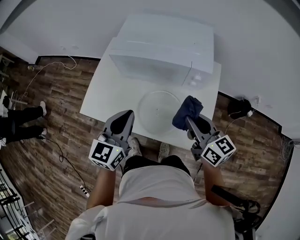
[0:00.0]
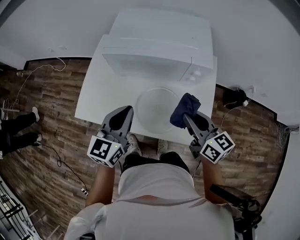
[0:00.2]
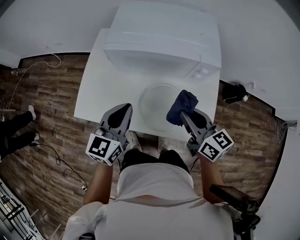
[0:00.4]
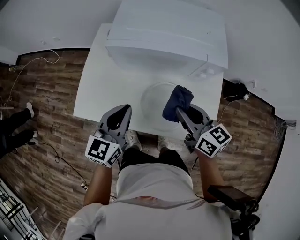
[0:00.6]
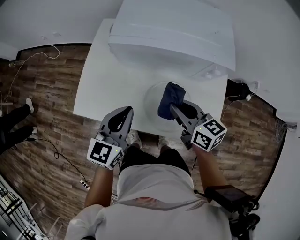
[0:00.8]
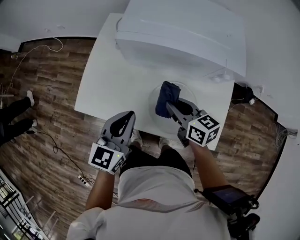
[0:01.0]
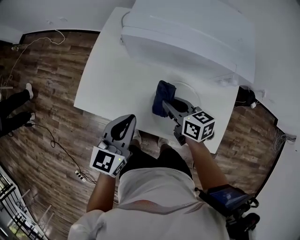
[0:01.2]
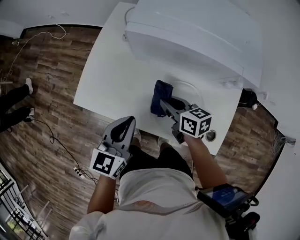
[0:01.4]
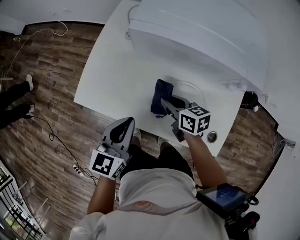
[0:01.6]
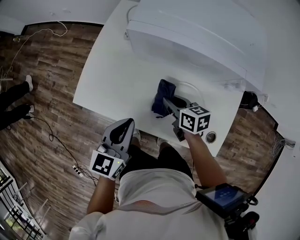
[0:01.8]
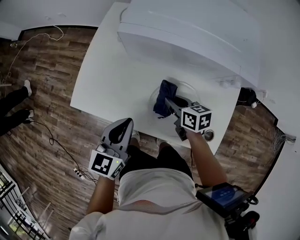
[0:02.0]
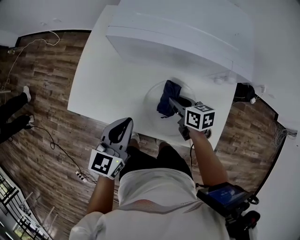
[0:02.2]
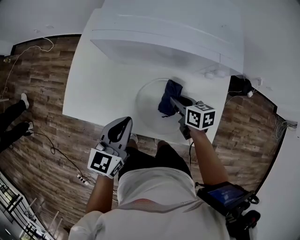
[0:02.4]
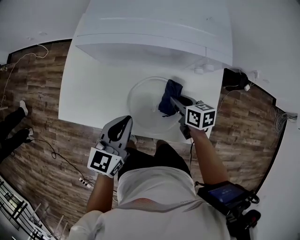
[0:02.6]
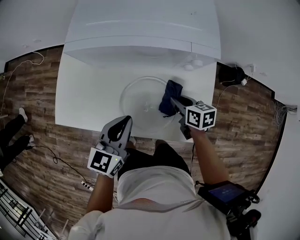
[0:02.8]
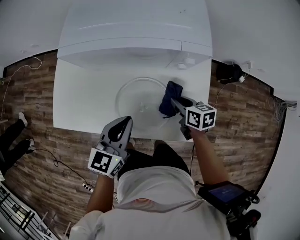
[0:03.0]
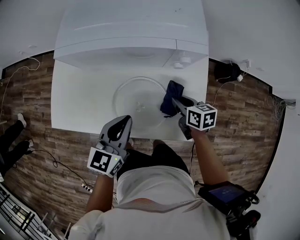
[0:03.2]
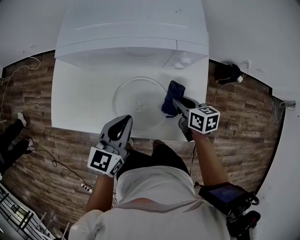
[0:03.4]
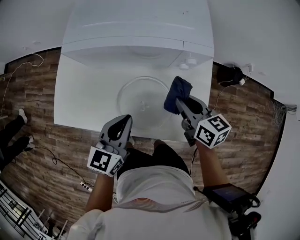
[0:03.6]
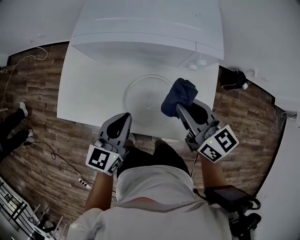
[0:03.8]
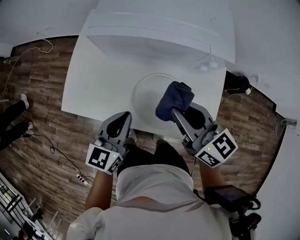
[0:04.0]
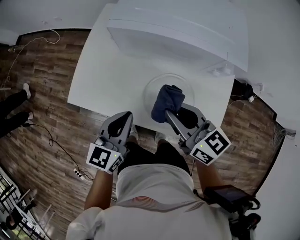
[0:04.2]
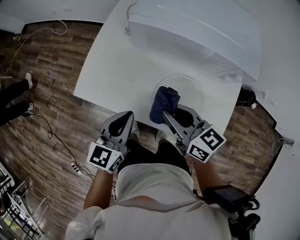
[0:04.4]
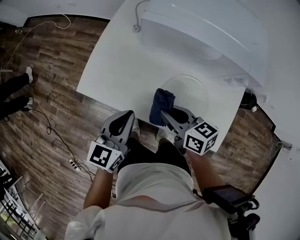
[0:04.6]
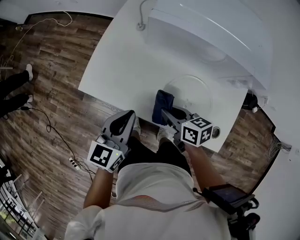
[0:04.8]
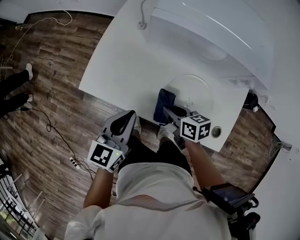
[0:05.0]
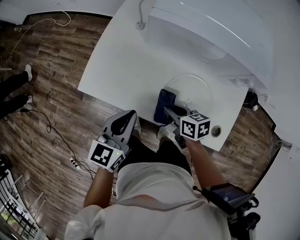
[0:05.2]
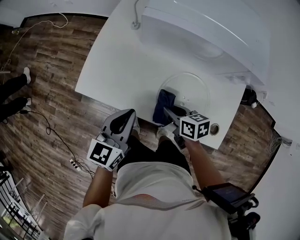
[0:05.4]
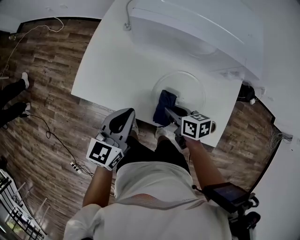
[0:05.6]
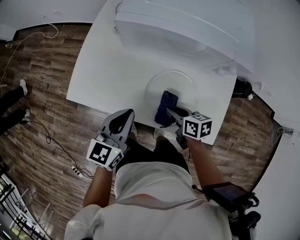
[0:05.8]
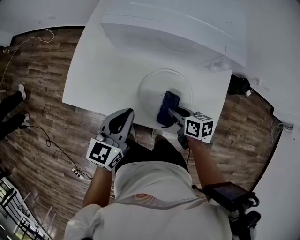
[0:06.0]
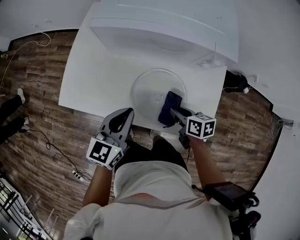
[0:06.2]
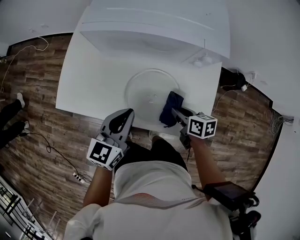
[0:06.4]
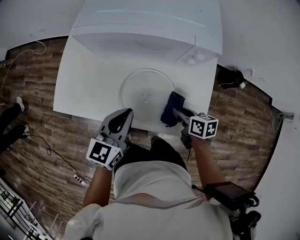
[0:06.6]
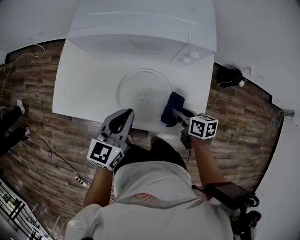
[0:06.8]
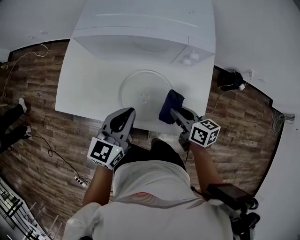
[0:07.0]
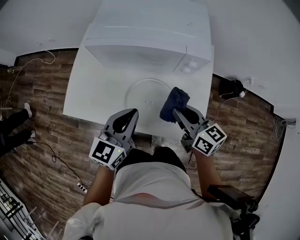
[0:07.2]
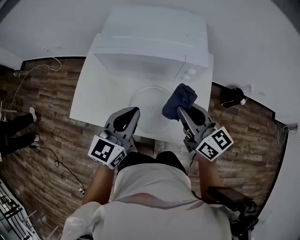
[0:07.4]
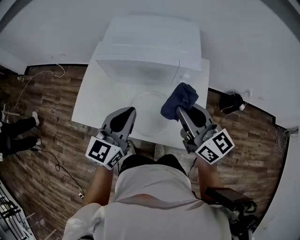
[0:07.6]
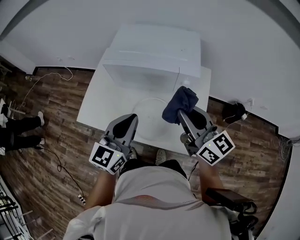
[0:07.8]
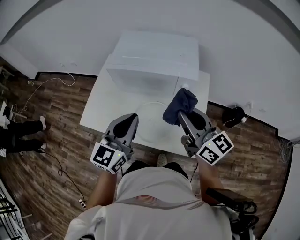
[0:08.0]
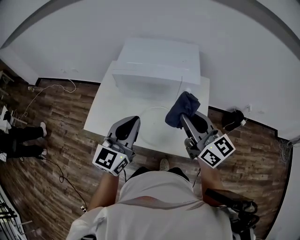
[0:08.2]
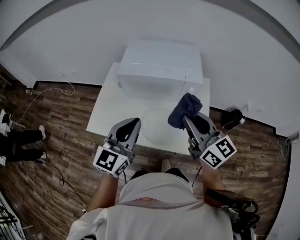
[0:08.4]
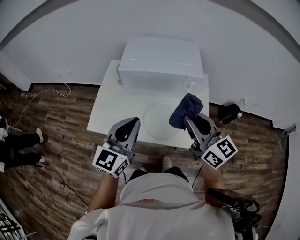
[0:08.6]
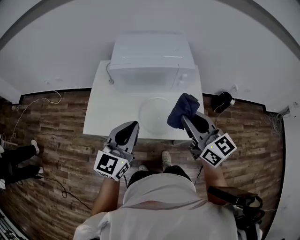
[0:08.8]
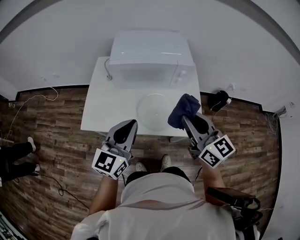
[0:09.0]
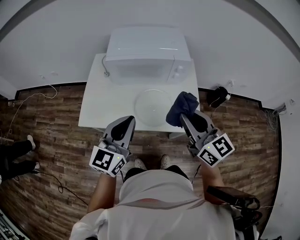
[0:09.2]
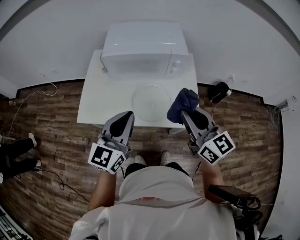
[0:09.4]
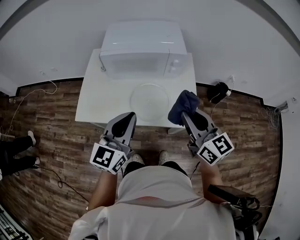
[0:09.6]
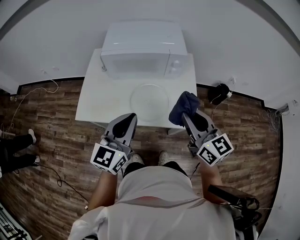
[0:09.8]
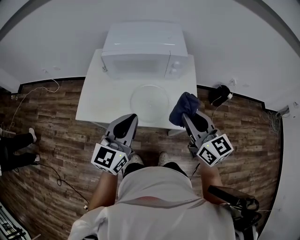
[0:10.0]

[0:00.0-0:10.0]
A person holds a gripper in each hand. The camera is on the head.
0:00.0 to 0:01.4: The right gripper goes some 30 cm downward, to the left and forward, and turns by approximately 30 degrees. Meanwhile the left gripper moves downward and to the left, about 15 cm.
0:01.4 to 0:02.8: The left gripper is displaced to the right by about 10 cm. Meanwhile the right gripper travels to the right by roughly 20 cm.
0:02.8 to 0:04.2: The left gripper heads to the left, covering some 10 cm. The right gripper shifts about 25 cm upward and to the left, and changes its angle by approximately 40 degrees.
0:04.2 to 0:05.8: The right gripper travels downward by about 20 cm, and swivels approximately 40 degrees.
0:05.8 to 0:07.2: The left gripper heads to the right and upward, covering approximately 15 cm. The right gripper is displaced upward and to the right by roughly 20 cm, and rotates approximately 30 degrees.
0:07.2 to 0:08.6: The right gripper goes roughly 20 cm upward, and rotates approximately 30 degrees. The left gripper goes roughly 20 cm upward, to the left and backward.
0:08.6 to 0:10.0: The right gripper moves backward and to the right, approximately 10 cm. Meanwhile the left gripper heads backward, covering roughly 5 cm.

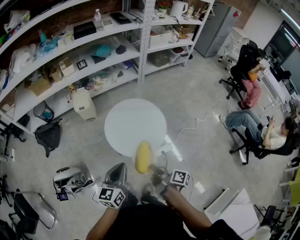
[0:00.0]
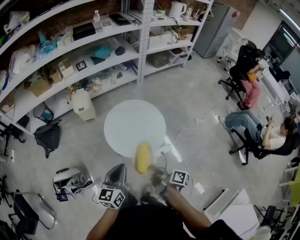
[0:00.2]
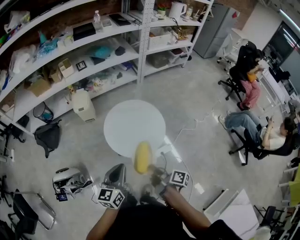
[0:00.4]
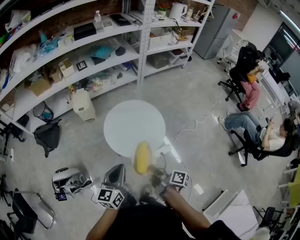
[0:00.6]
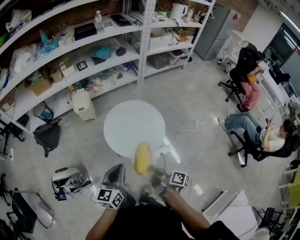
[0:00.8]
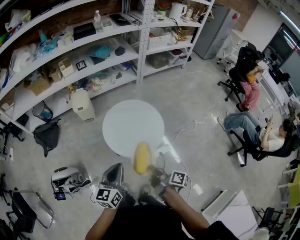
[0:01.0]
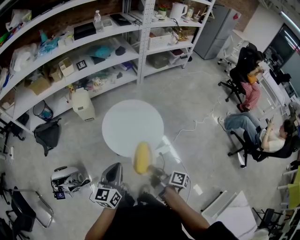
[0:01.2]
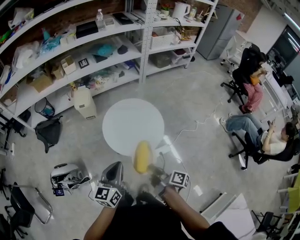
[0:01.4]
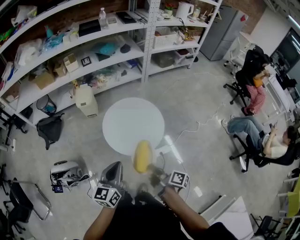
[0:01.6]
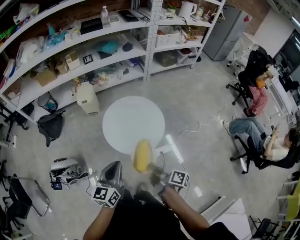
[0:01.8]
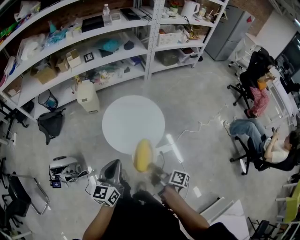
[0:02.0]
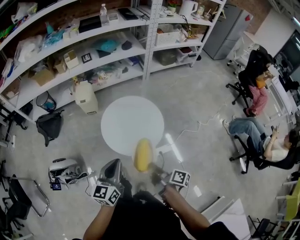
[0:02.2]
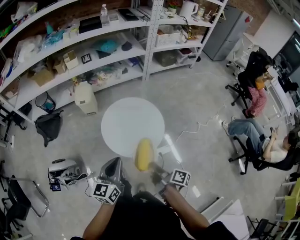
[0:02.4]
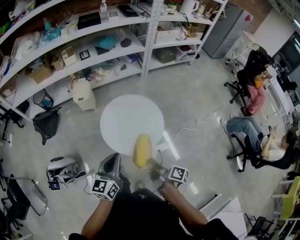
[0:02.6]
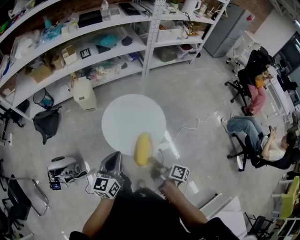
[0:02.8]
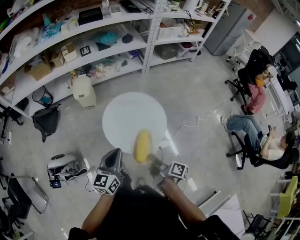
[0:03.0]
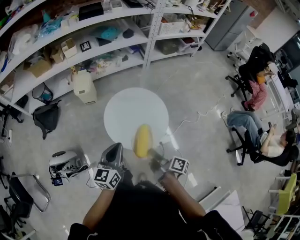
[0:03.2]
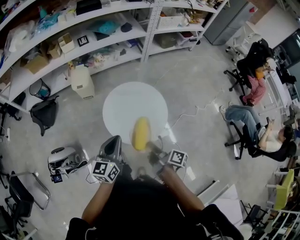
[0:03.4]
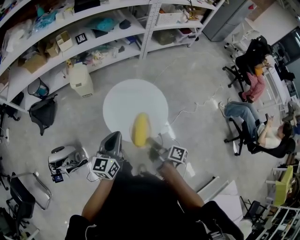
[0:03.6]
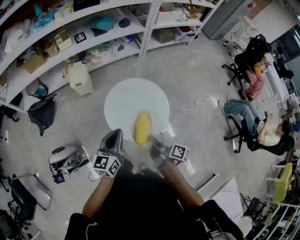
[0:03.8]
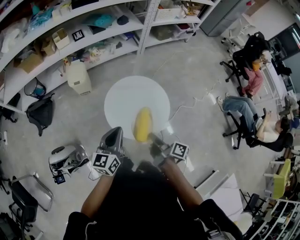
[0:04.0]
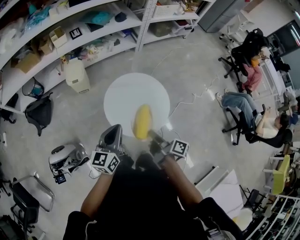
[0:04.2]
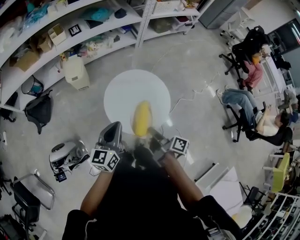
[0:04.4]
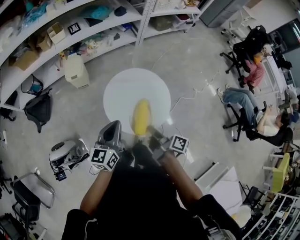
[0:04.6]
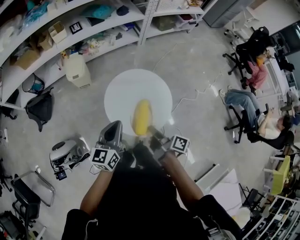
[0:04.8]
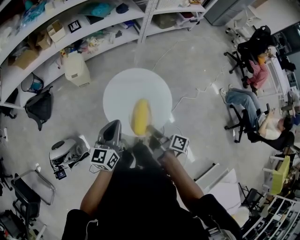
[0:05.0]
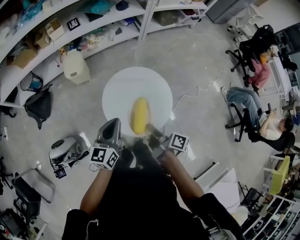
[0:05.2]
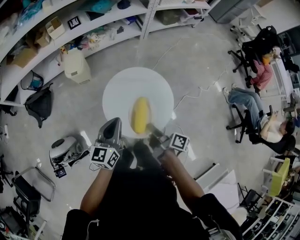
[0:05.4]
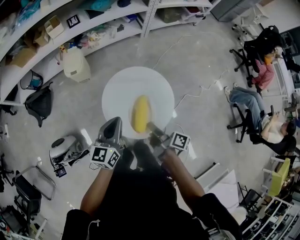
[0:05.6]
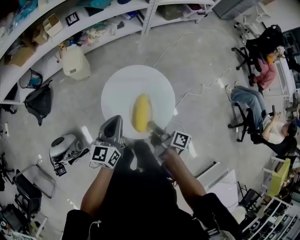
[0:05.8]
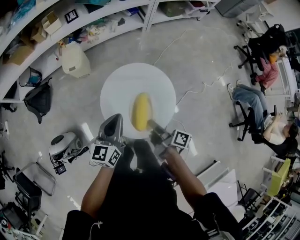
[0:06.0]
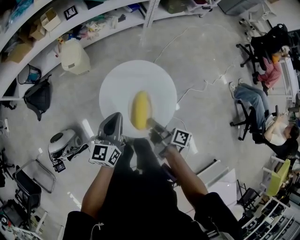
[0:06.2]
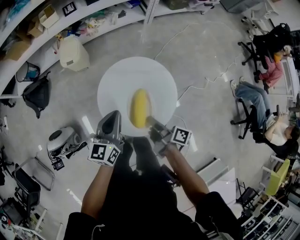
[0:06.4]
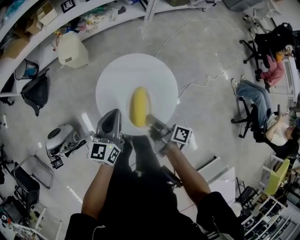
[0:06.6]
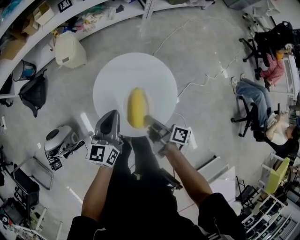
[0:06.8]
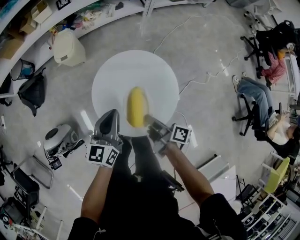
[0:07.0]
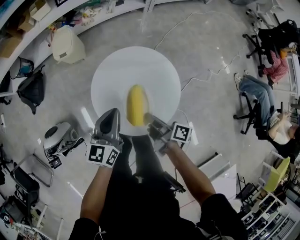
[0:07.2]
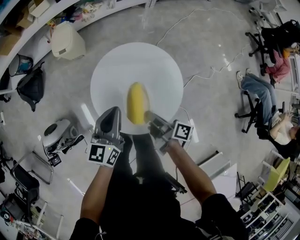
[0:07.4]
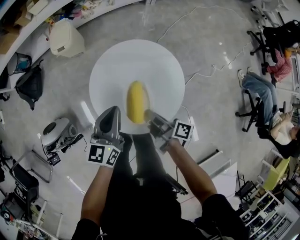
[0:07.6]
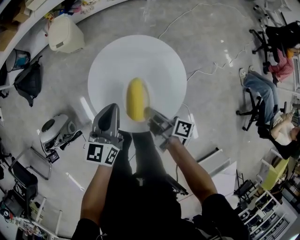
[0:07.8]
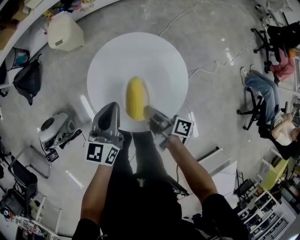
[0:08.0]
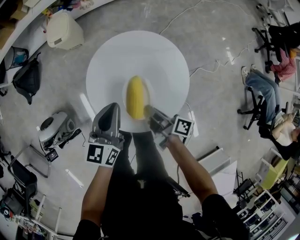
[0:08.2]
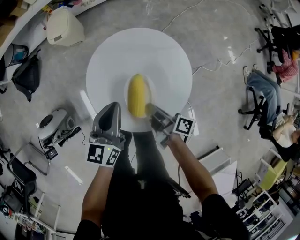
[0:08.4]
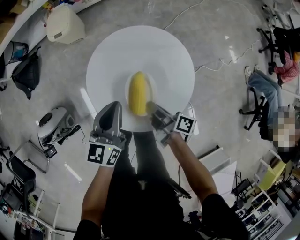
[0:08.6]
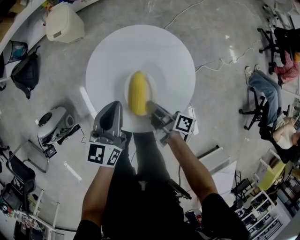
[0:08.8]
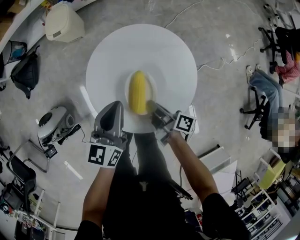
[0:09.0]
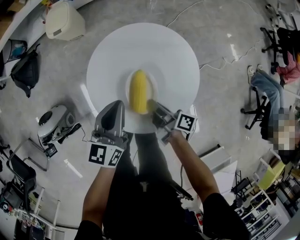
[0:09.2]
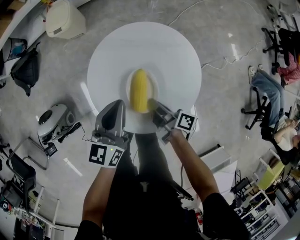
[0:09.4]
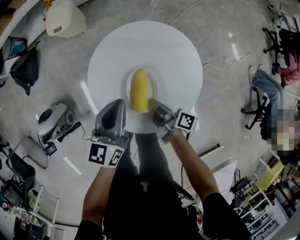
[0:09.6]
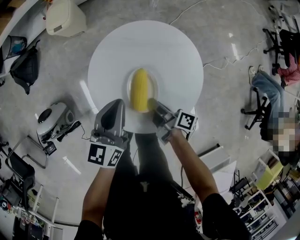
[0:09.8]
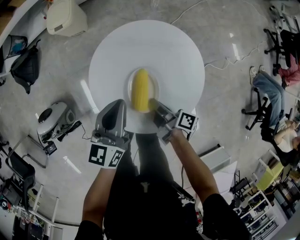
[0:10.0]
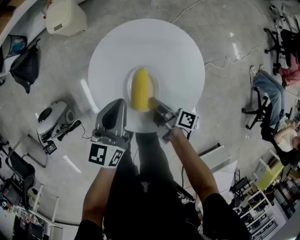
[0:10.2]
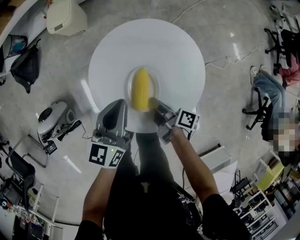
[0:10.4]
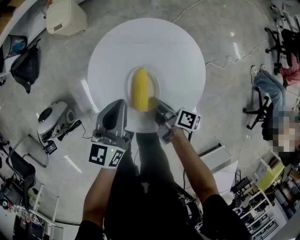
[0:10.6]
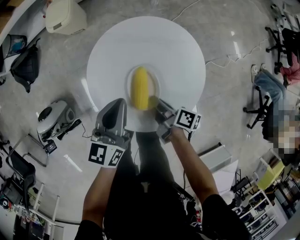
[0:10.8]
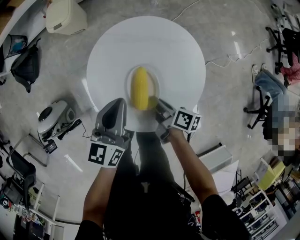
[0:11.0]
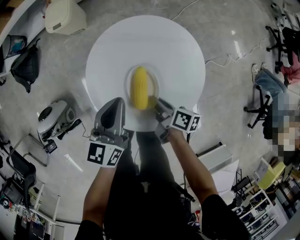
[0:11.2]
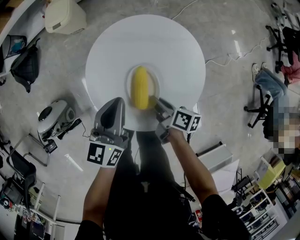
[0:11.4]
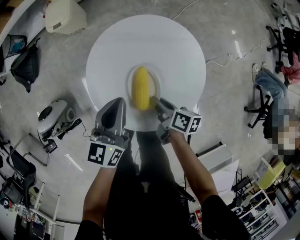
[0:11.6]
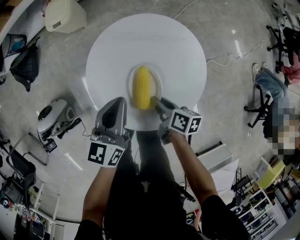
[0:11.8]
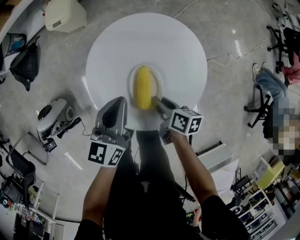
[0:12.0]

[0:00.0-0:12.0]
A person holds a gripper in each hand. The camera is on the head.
0:01.6 to 0:03.0: The left gripper ends up some 10 cm from where it was.
0:03.0 to 0:04.4: The left gripper shifts by some 10 cm.
0:04.4 to 0:06.0: The left gripper moves about 10 cm.
0:06.0 to 0:07.6: The left gripper travels downward by approximately 10 cm.

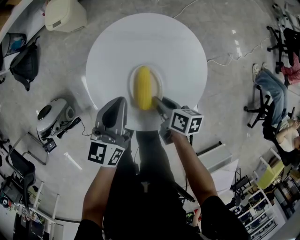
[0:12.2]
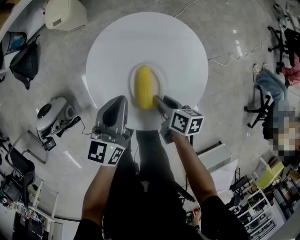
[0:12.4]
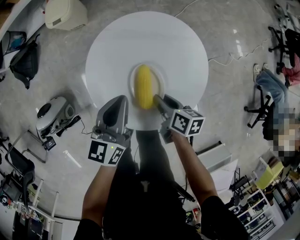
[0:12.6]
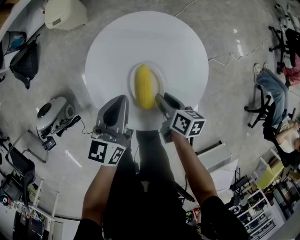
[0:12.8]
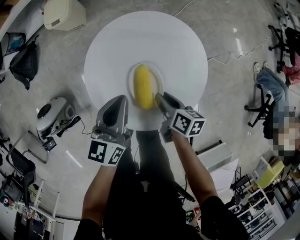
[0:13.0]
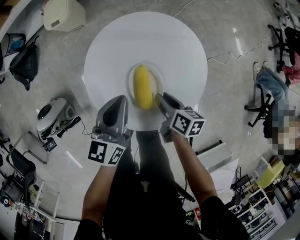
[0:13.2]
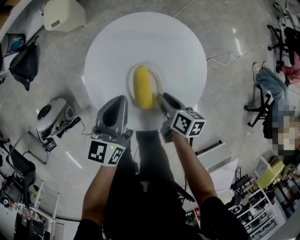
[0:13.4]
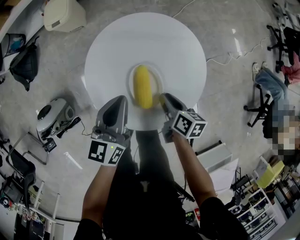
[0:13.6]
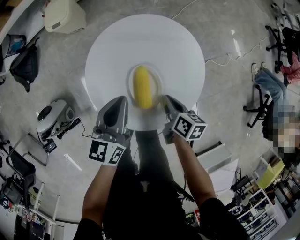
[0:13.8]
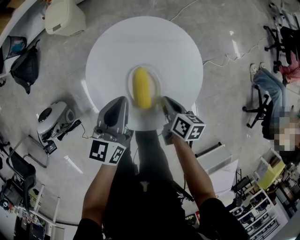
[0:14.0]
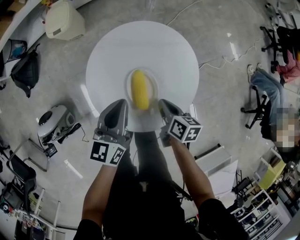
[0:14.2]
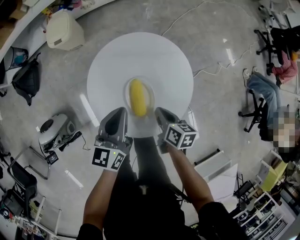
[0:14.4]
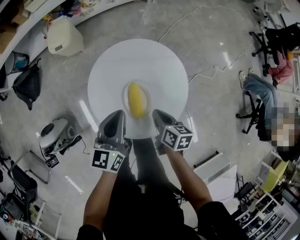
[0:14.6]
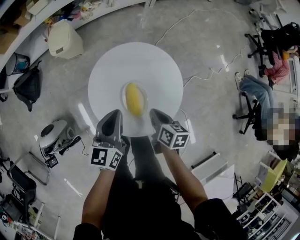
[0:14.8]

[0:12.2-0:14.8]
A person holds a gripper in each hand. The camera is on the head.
0:13.4 to 0:14.8: The left gripper travels upward by about 5 cm.
